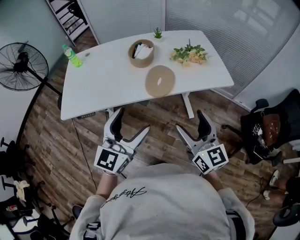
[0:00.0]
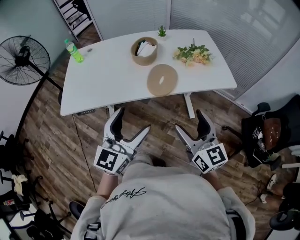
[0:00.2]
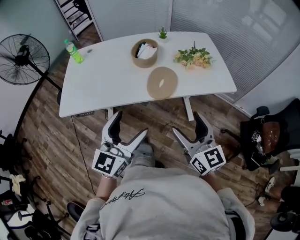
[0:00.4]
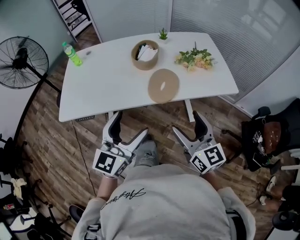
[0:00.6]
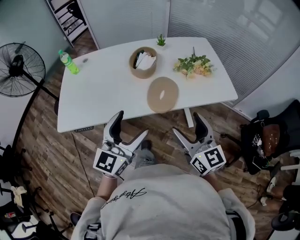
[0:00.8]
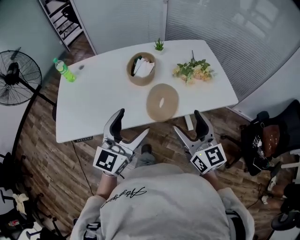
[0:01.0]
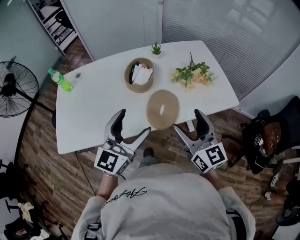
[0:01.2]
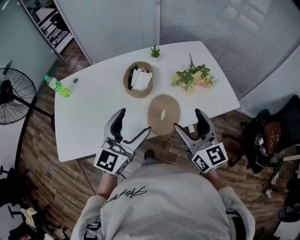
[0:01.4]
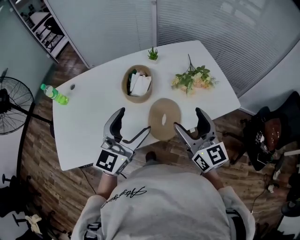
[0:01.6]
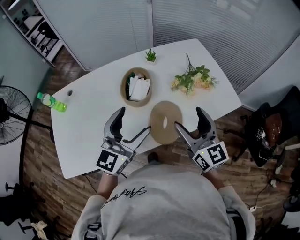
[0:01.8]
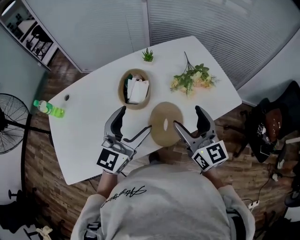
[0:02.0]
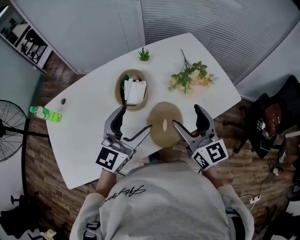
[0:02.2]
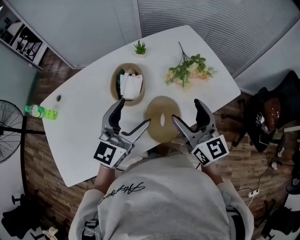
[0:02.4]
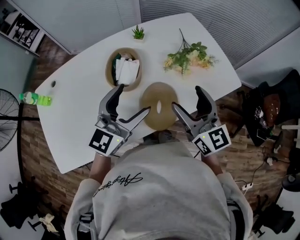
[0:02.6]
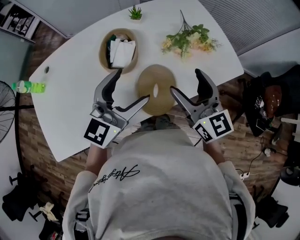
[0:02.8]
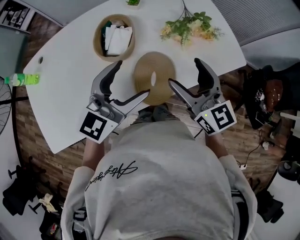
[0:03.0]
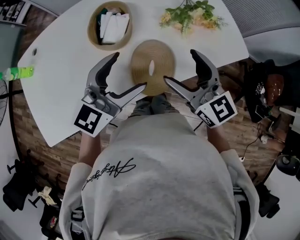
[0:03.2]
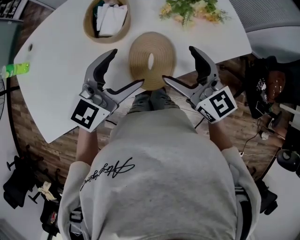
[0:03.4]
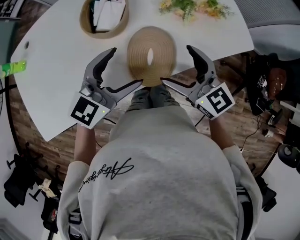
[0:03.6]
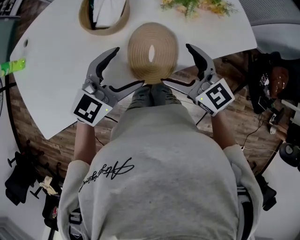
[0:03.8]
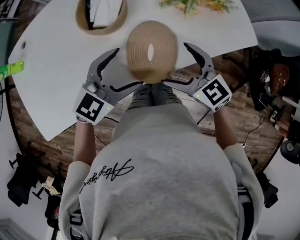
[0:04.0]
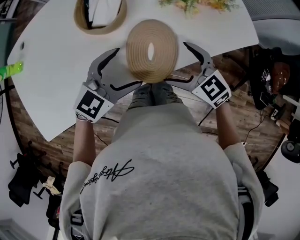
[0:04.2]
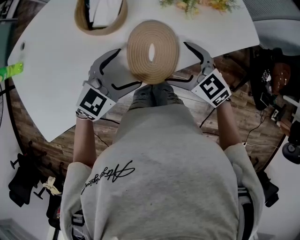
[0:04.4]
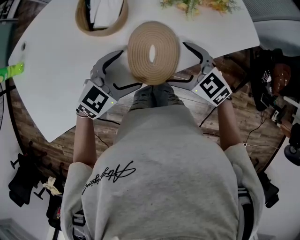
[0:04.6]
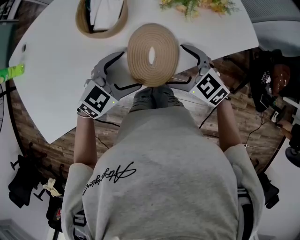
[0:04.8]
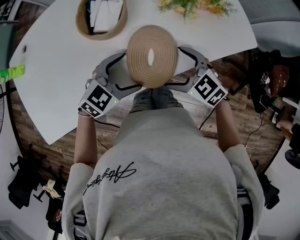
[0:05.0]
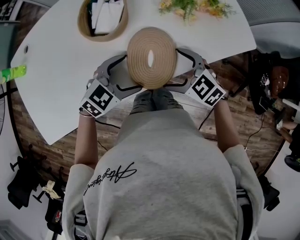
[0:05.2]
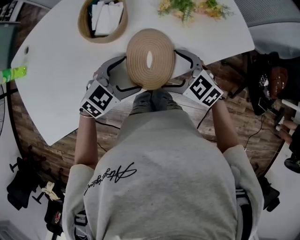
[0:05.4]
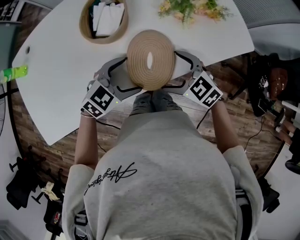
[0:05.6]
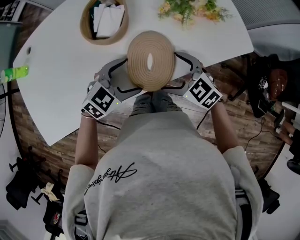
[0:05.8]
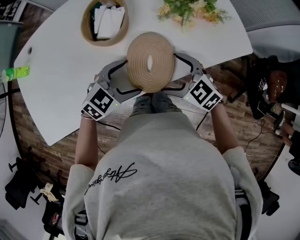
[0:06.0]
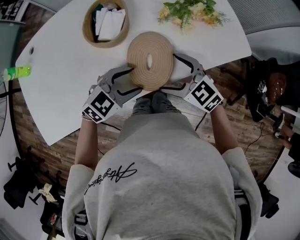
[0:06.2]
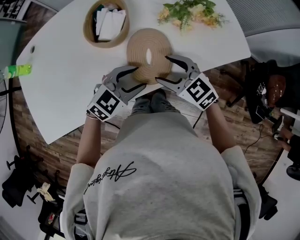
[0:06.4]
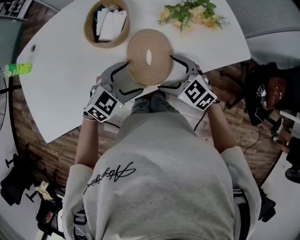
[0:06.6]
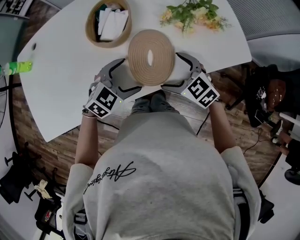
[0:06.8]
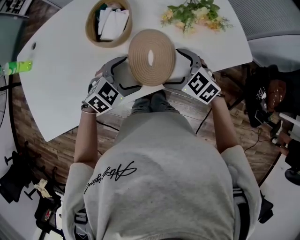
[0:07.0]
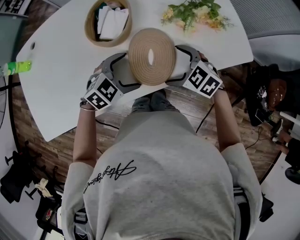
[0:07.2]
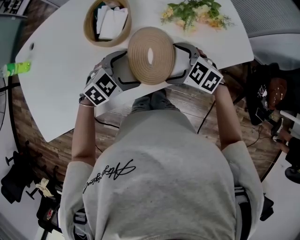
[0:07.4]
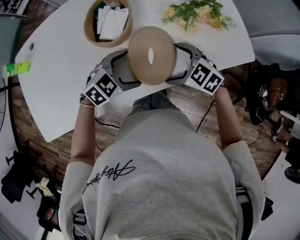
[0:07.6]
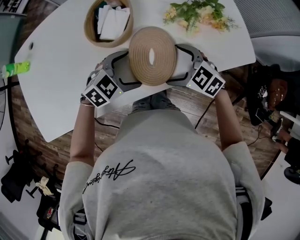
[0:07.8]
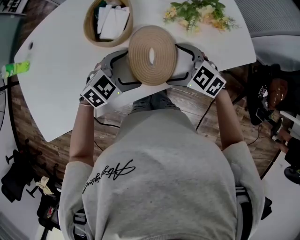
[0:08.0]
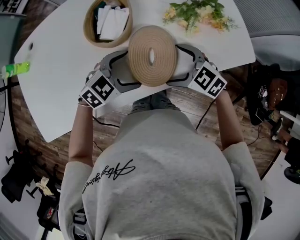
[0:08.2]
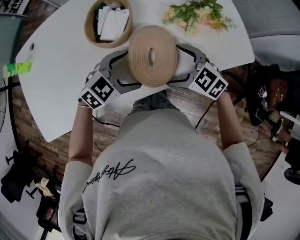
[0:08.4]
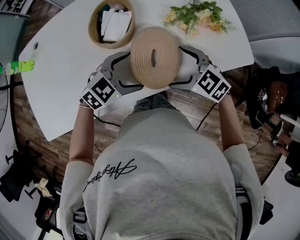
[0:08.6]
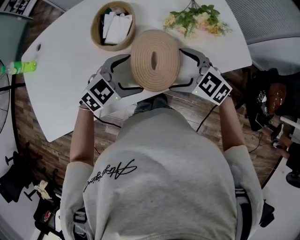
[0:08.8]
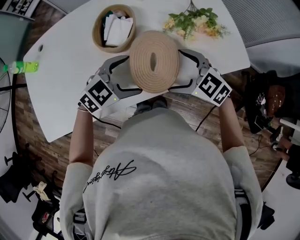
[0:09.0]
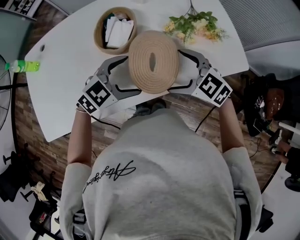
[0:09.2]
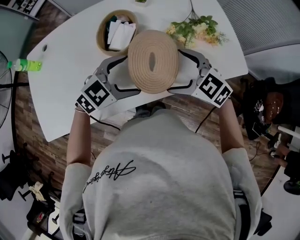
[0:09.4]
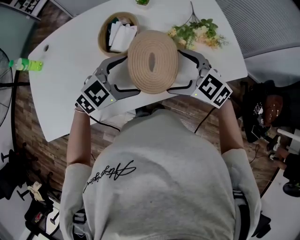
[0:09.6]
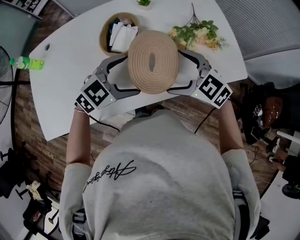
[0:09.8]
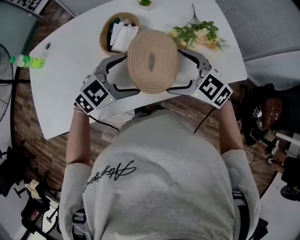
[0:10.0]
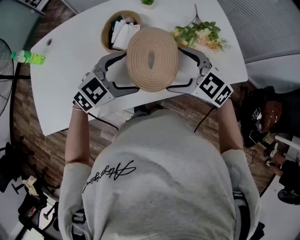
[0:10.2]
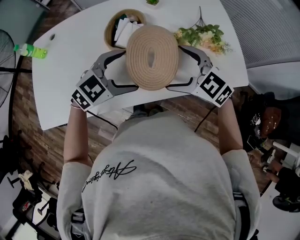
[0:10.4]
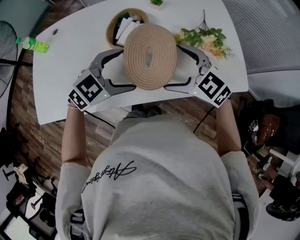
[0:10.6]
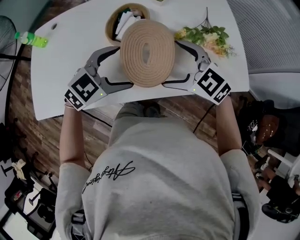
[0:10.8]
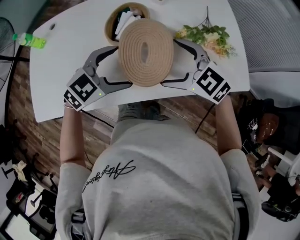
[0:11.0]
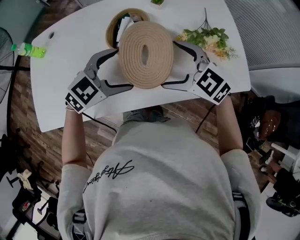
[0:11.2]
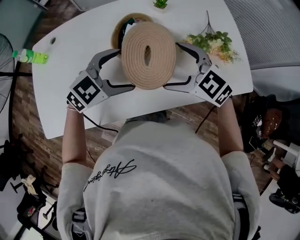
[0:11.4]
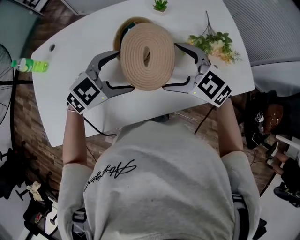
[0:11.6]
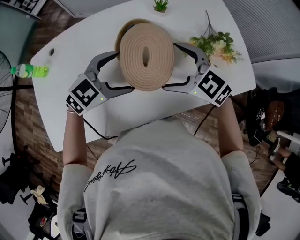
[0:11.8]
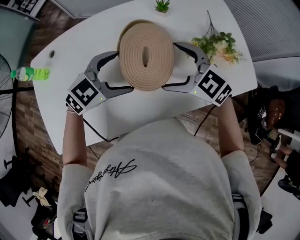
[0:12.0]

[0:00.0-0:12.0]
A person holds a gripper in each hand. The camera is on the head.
0:00.0 to 0:01.6: Both grippers move forward, roughly 25 cm.
0:01.6 to 0:03.0: The two grippers go about 5 cm forward.
0:03.0 to 0:04.4: The two grippers go about 15 cm downward. The left gripper rotates roughly 30 degrees. The right gripper swivels approximately 40 degrees.
0:04.4 to 0:06.0: There are only small adjustments of the grippers.
0:06.0 to 0:07.6: The right gripper shifts by roughly 5 cm, and closes and opens again; the left gripper closes, then reopens.
0:07.6 to 0:09.0: The two grippers go approximately 5 cm upward.
0:09.0 to 0:10.4: The two grippers go approximately 5 cm upward.
0:10.4 to 0:12.0: The left gripper changes place by roughly 10 cm, while the right gripper ends up approximately 10 cm from where it was.

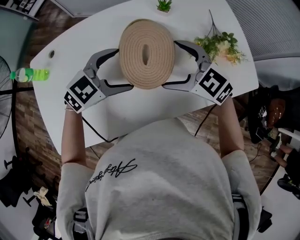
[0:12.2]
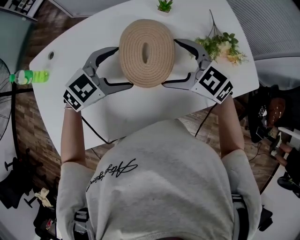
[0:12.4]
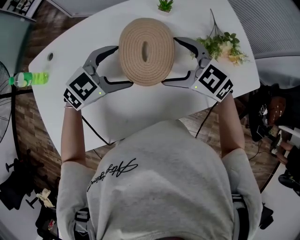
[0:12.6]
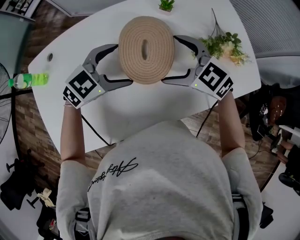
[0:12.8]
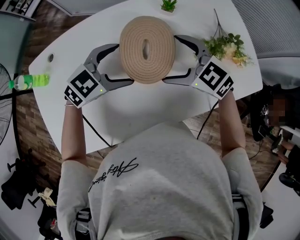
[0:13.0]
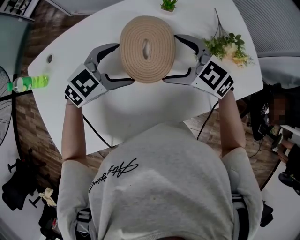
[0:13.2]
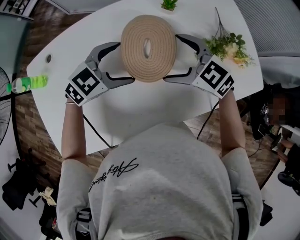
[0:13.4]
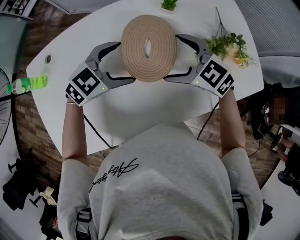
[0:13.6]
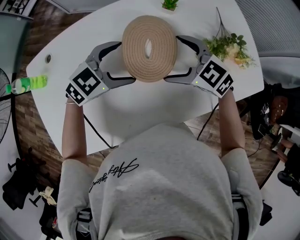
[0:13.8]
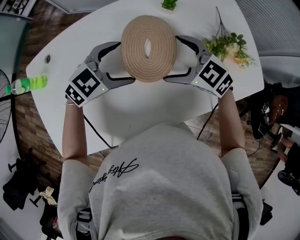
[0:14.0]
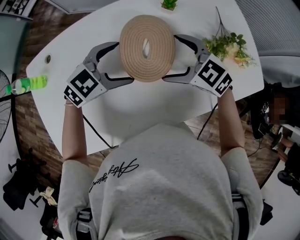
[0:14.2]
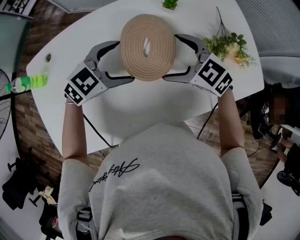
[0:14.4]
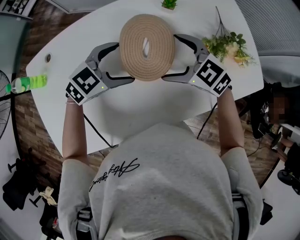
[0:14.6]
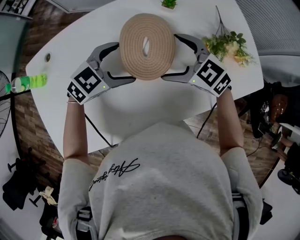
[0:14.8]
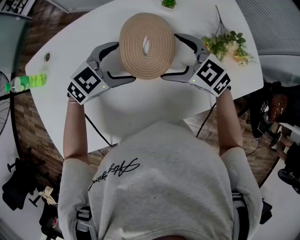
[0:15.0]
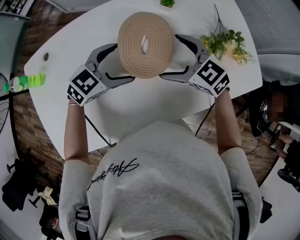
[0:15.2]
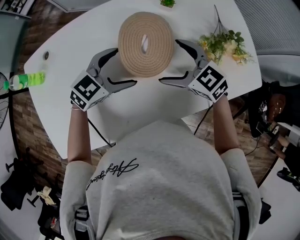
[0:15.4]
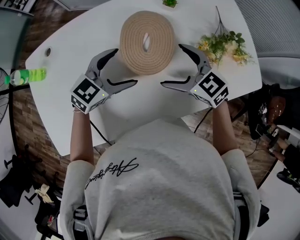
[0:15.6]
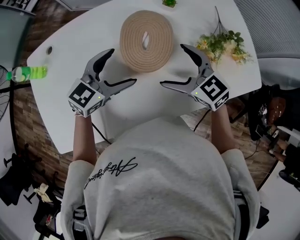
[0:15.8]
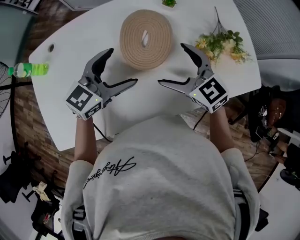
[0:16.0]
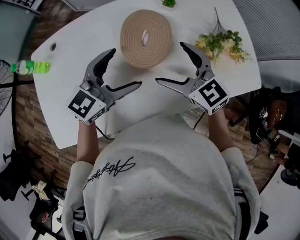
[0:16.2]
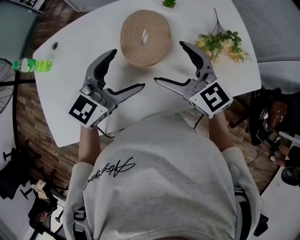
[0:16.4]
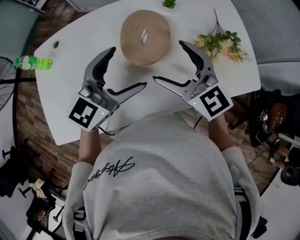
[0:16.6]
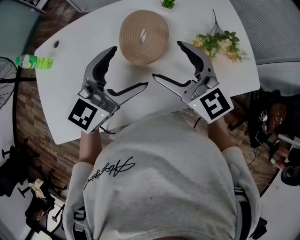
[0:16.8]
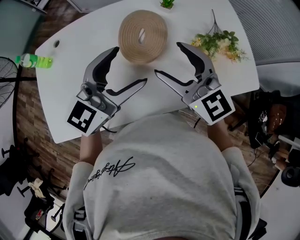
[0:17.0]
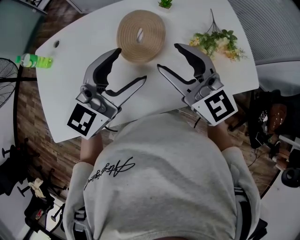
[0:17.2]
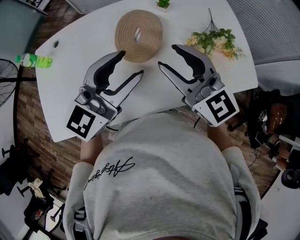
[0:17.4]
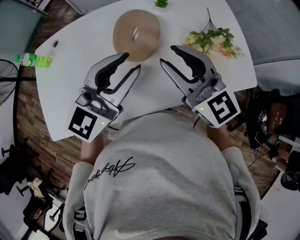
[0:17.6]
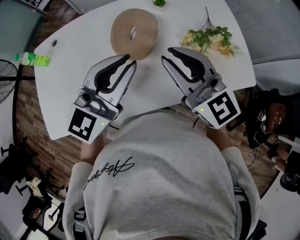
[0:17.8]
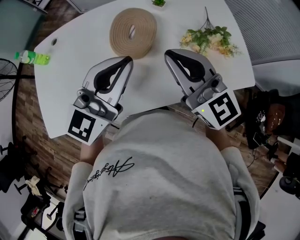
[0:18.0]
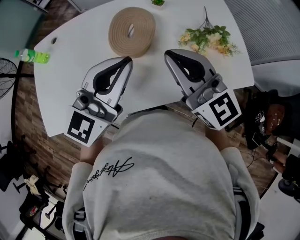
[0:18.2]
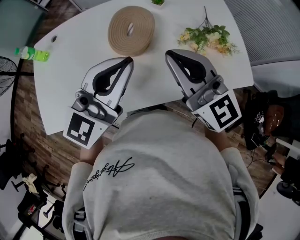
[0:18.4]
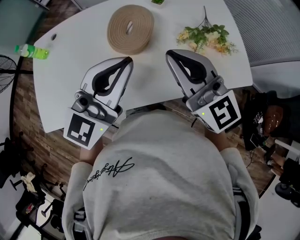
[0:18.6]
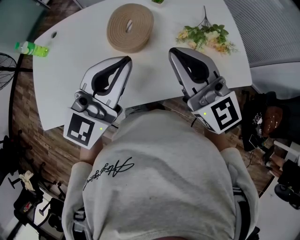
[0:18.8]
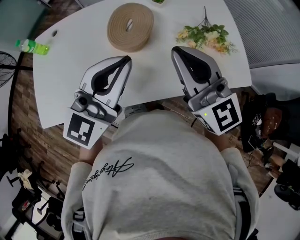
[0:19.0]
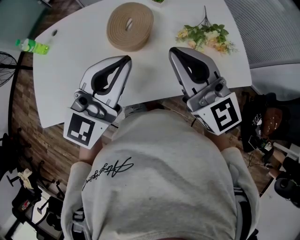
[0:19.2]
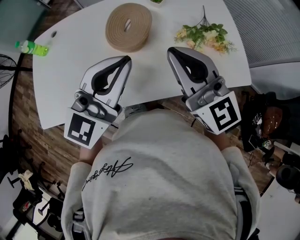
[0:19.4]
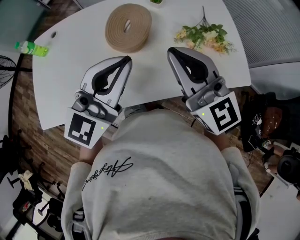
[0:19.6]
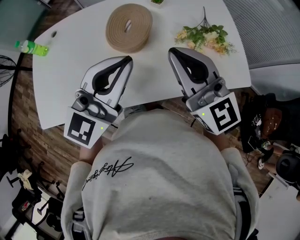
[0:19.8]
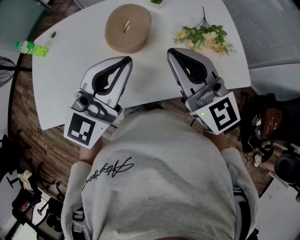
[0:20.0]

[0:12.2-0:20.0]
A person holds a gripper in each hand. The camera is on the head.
0:12.2 to 0:13.8: The right gripper ends up some 5 cm from where it was; the left gripper ends up about 5 cm from where it was.
0:13.8 to 0:15.4: There are only small adjustments of the grippers.
0:15.4 to 0:16.8: The two grippers go roughly 15 cm upward and backward. The left gripper turns by about 30 degrees. Meanwhile the right gripper turns by roughly 30 degrees.
0:16.8 to 0:18.4: The right gripper moves upward and to the right, about 10 cm, and closes. The left gripper heads upward and backward, covering roughly 10 cm, and closes its fingers.
0:18.4 to 0:20.0: There are only small adjustments of the grippers.

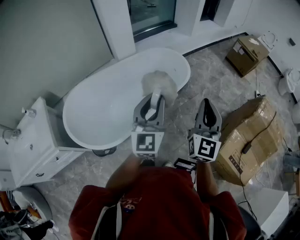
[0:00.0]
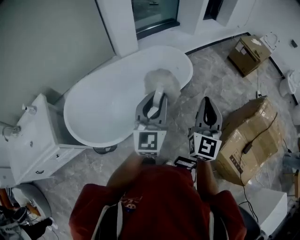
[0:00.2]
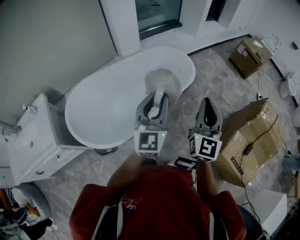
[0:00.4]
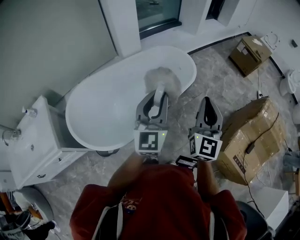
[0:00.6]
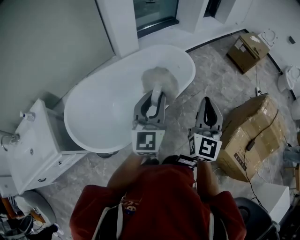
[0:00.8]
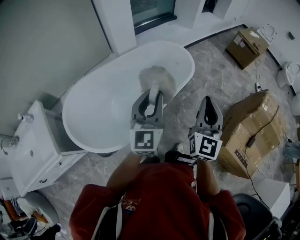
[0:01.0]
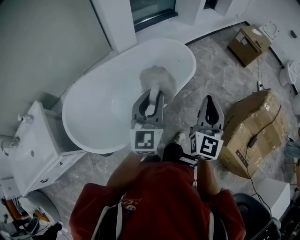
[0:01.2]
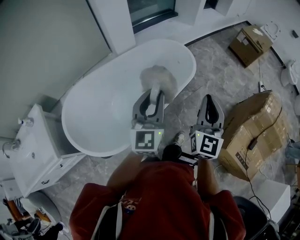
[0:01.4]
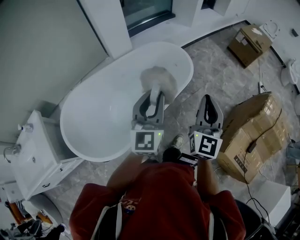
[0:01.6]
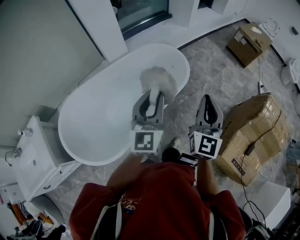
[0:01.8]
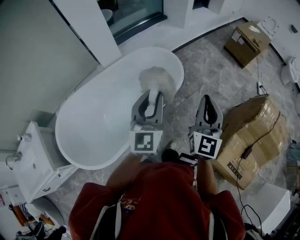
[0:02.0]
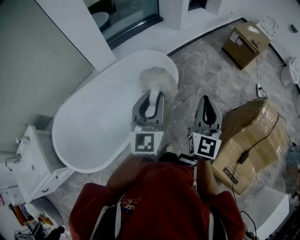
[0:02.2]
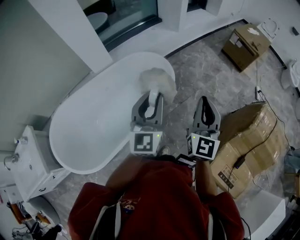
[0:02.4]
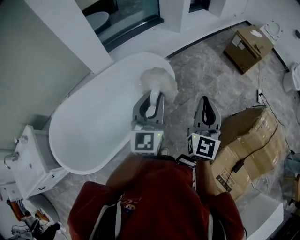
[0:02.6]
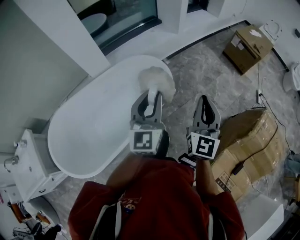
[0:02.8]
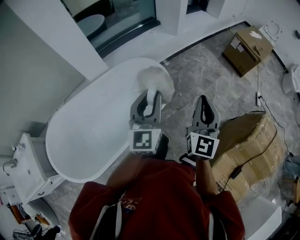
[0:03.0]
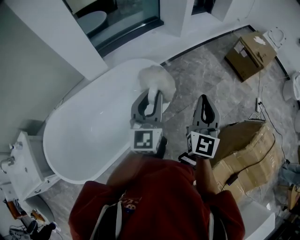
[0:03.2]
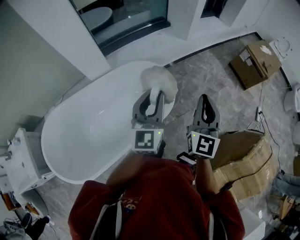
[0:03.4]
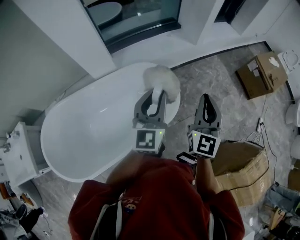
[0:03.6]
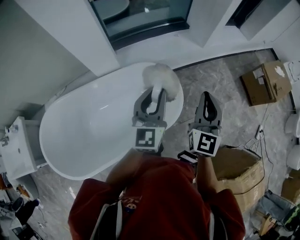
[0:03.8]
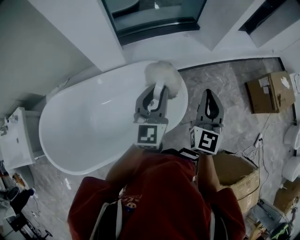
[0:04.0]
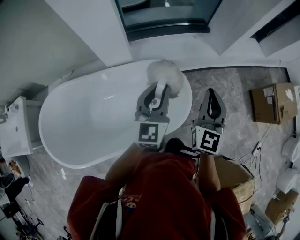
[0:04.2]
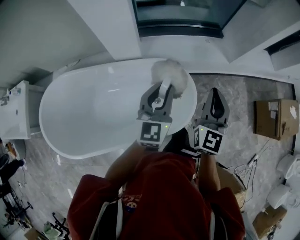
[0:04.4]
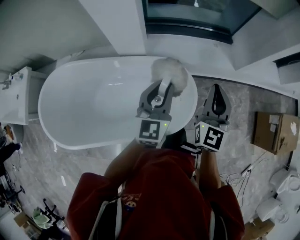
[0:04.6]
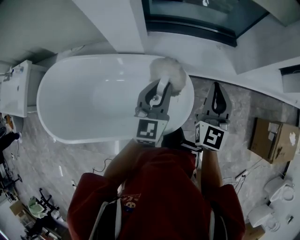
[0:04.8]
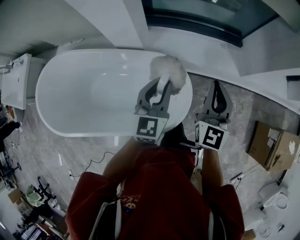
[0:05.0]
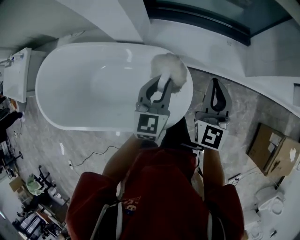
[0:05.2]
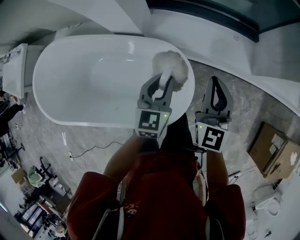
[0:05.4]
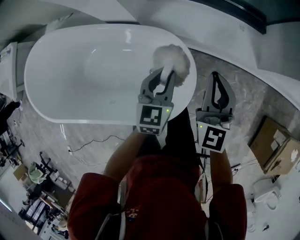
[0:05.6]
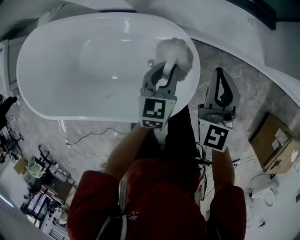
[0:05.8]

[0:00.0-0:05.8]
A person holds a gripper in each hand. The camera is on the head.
0:00.0 to 0:01.4: Both grippers move forward and to the left, about 10 cm.
0:01.4 to 0:02.8: Both grippers travel together forward and to the right, some 35 cm.
0:02.8 to 0:04.4: The right gripper ends up roughly 40 cm from where it was, and changes its angle by approximately 30 degrees. Meanwhile the left gripper ends up roughly 35 cm from where it was, and rotates some 30 degrees.
0:04.4 to 0:05.8: Both grippers move downward and forward, roughly 30 cm. The right gripper rotates roughly 30 degrees, while the left gripper rotates about 30 degrees.
